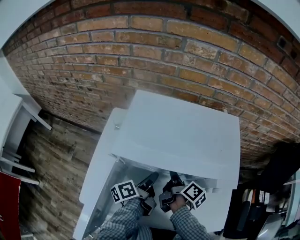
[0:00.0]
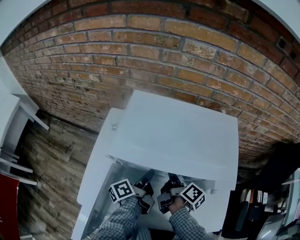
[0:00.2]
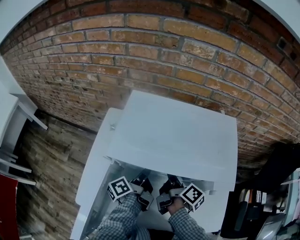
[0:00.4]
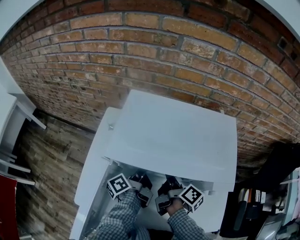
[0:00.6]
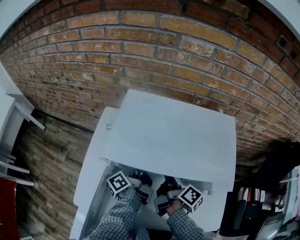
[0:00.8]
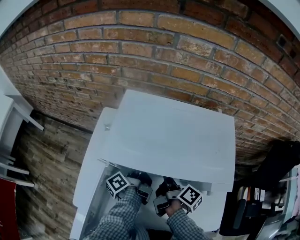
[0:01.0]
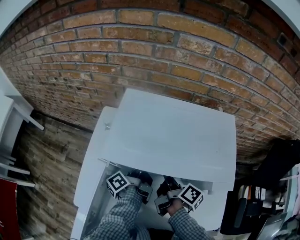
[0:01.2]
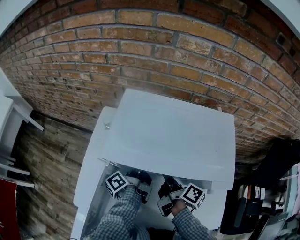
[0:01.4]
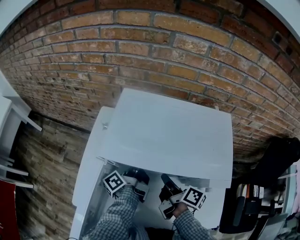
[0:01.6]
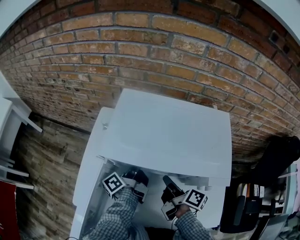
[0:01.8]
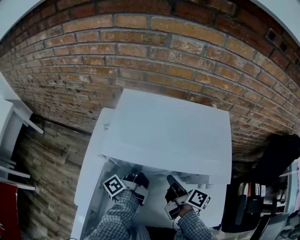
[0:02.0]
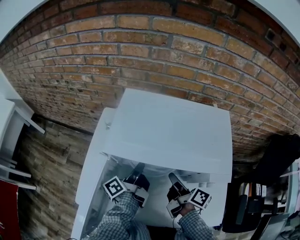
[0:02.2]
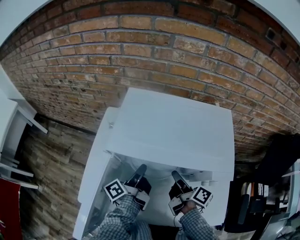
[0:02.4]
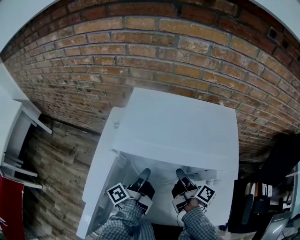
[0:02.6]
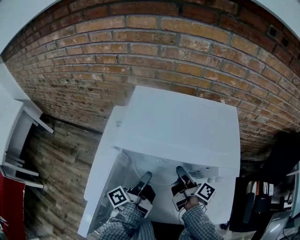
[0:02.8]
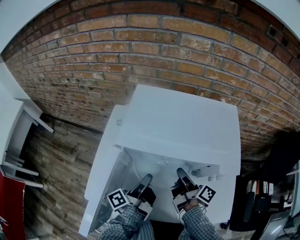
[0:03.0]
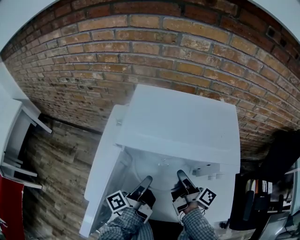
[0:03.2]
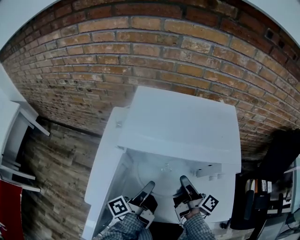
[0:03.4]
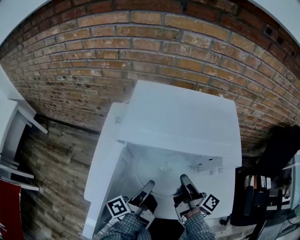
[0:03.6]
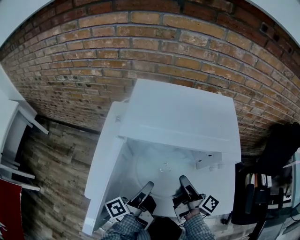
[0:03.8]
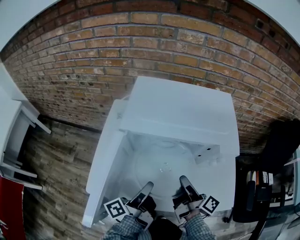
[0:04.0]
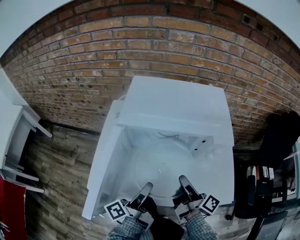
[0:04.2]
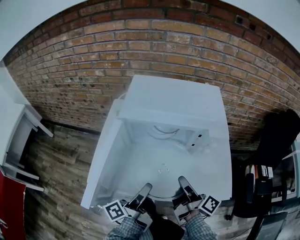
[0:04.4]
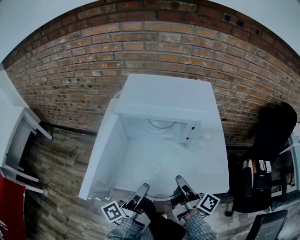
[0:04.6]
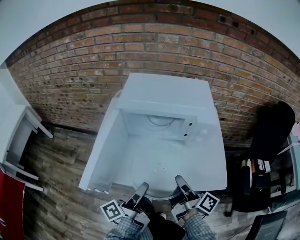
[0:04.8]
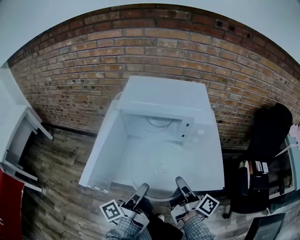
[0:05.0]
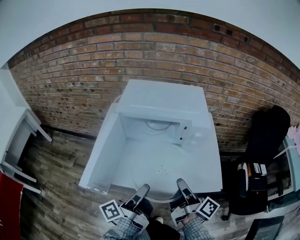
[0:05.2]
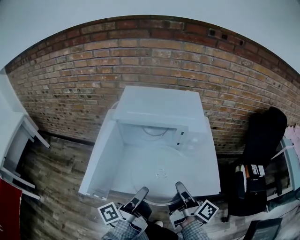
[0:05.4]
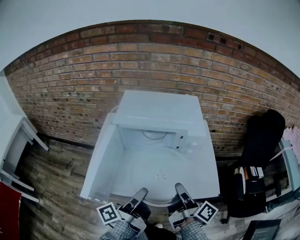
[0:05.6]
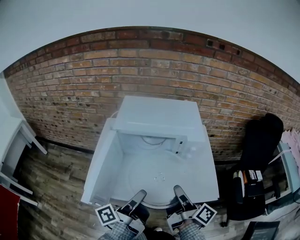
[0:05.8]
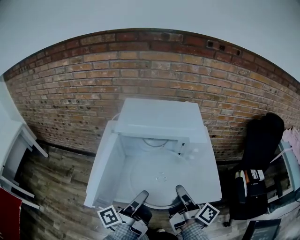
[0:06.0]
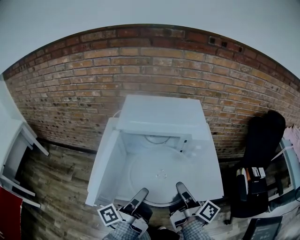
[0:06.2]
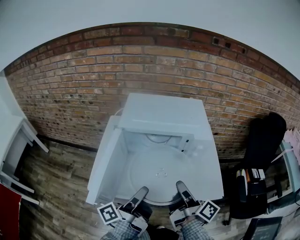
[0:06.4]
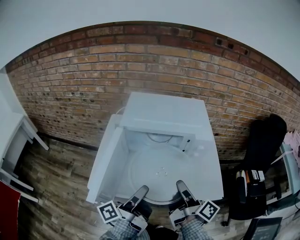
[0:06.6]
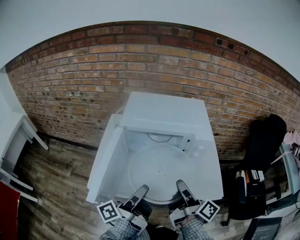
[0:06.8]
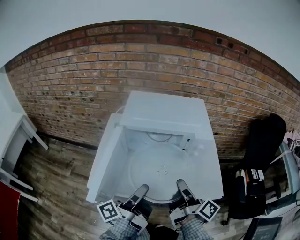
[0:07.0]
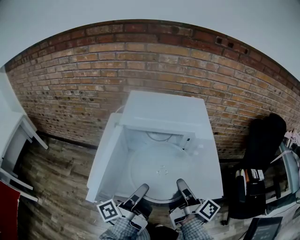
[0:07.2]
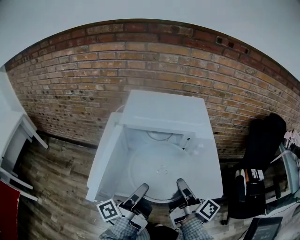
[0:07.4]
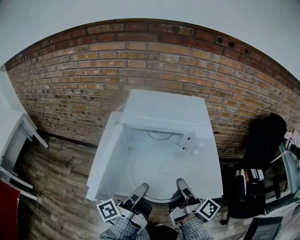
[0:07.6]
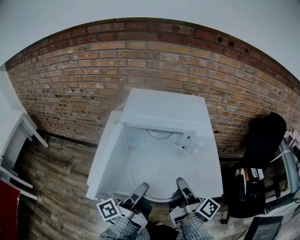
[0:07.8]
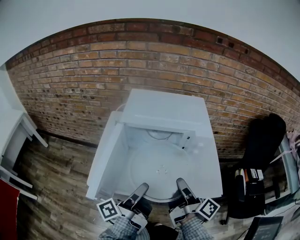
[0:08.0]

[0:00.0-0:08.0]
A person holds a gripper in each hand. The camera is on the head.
1.6 to 3.2 s: The right gripper opens and closes again.
3.2 to 4.8 s: The right gripper shifts by approximately 25 cm.
4.8 to 6.4 s: The right gripper heads upward, covering some 5 cm.

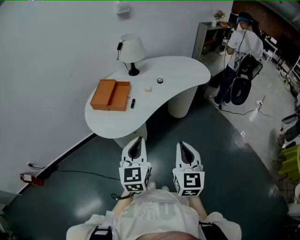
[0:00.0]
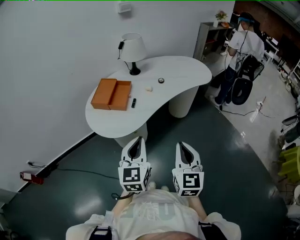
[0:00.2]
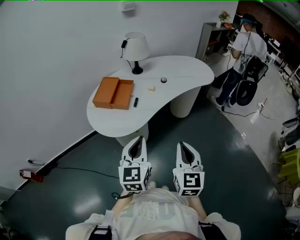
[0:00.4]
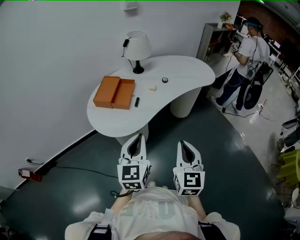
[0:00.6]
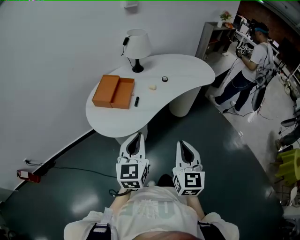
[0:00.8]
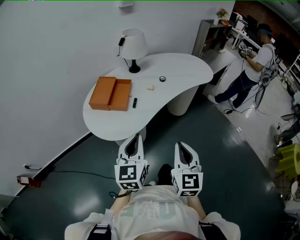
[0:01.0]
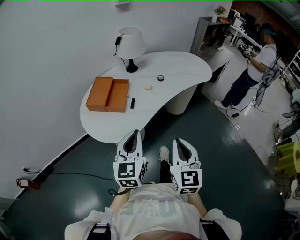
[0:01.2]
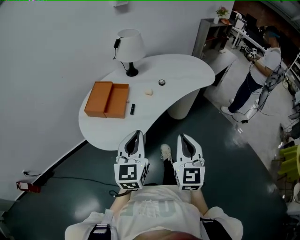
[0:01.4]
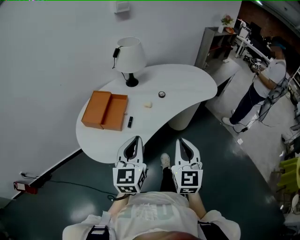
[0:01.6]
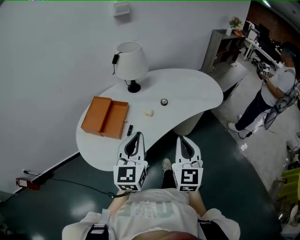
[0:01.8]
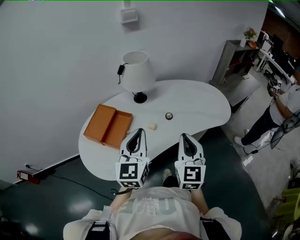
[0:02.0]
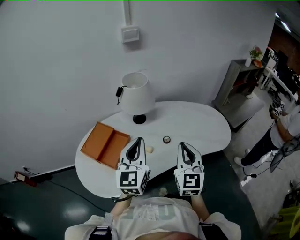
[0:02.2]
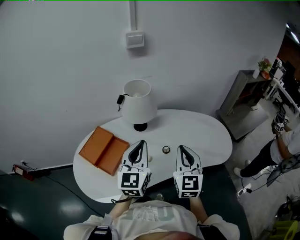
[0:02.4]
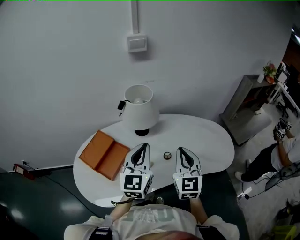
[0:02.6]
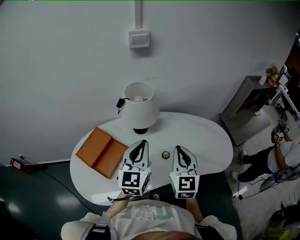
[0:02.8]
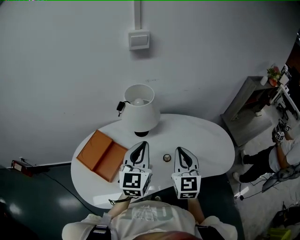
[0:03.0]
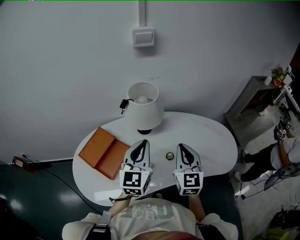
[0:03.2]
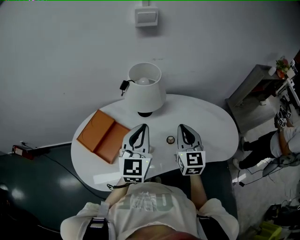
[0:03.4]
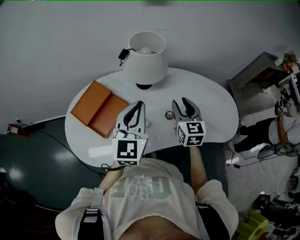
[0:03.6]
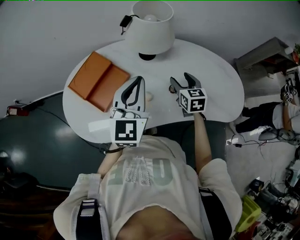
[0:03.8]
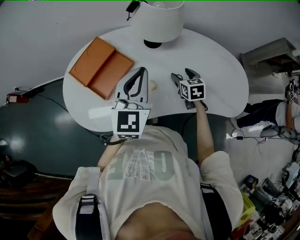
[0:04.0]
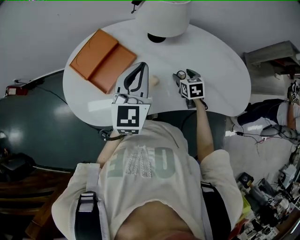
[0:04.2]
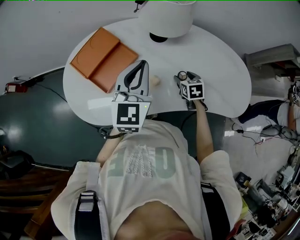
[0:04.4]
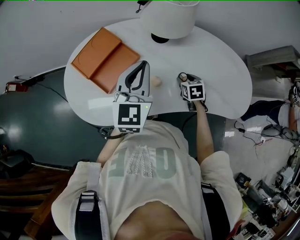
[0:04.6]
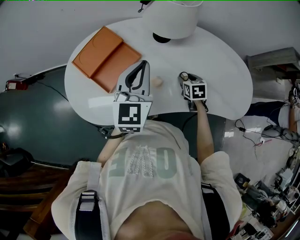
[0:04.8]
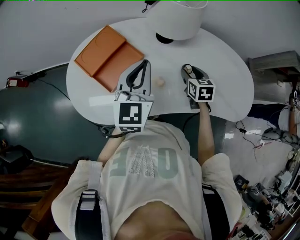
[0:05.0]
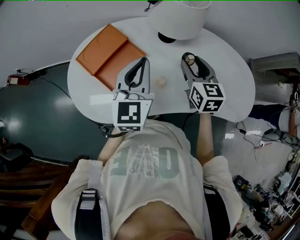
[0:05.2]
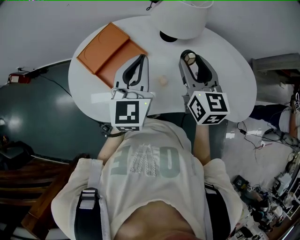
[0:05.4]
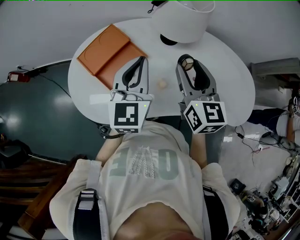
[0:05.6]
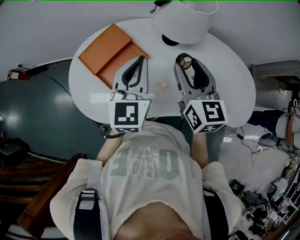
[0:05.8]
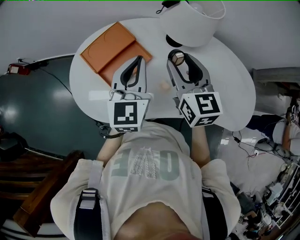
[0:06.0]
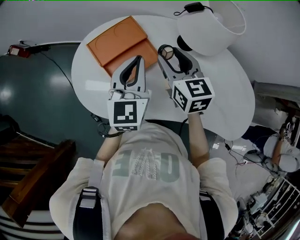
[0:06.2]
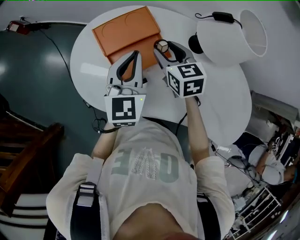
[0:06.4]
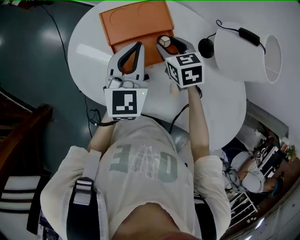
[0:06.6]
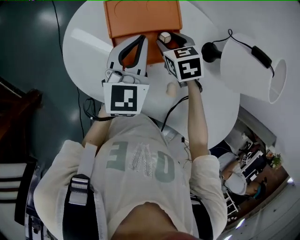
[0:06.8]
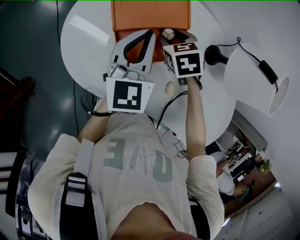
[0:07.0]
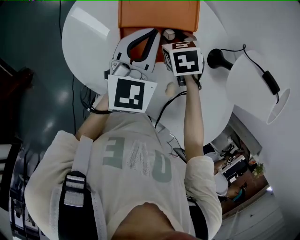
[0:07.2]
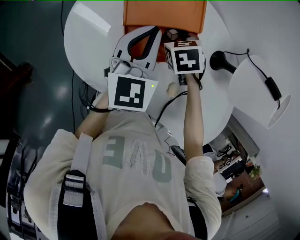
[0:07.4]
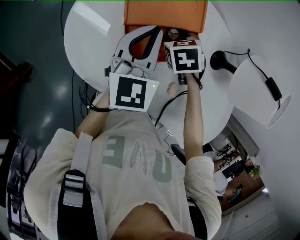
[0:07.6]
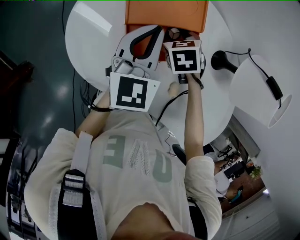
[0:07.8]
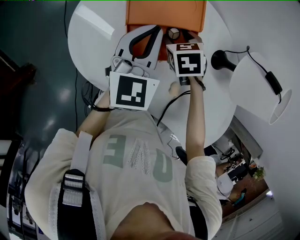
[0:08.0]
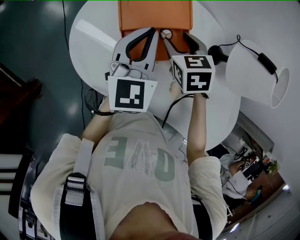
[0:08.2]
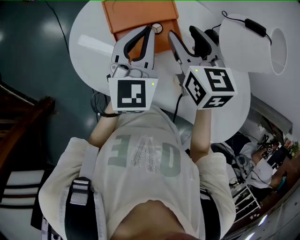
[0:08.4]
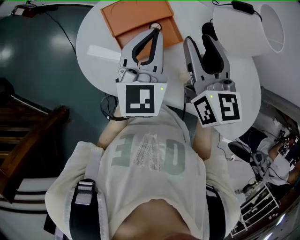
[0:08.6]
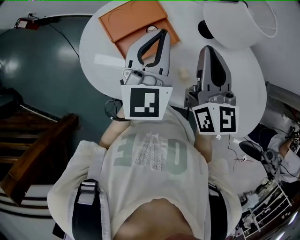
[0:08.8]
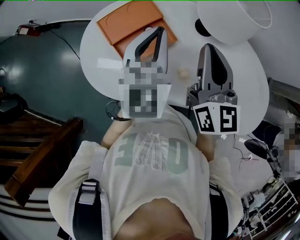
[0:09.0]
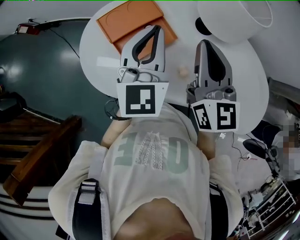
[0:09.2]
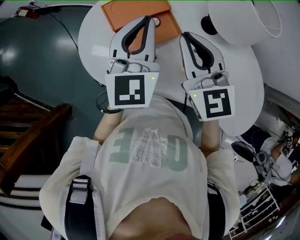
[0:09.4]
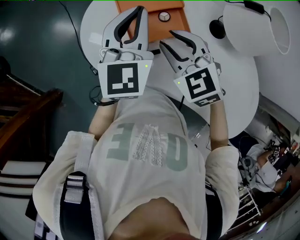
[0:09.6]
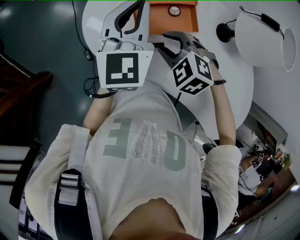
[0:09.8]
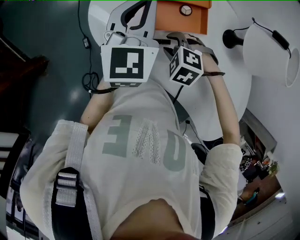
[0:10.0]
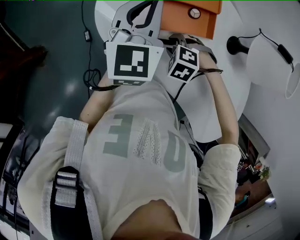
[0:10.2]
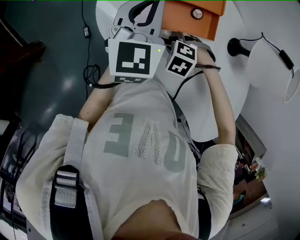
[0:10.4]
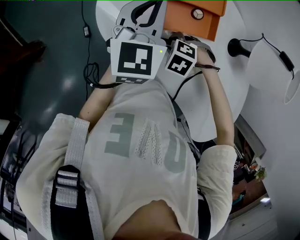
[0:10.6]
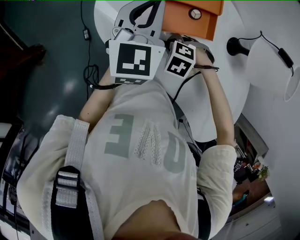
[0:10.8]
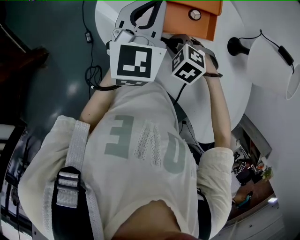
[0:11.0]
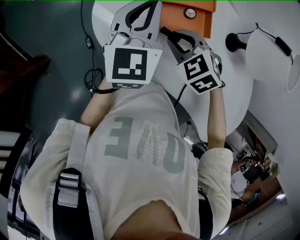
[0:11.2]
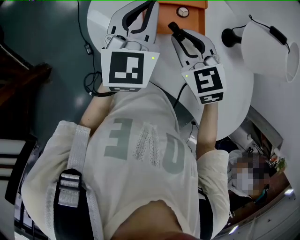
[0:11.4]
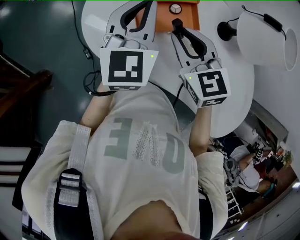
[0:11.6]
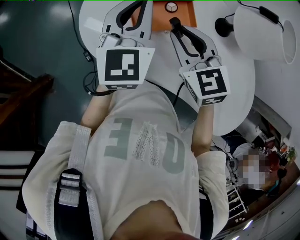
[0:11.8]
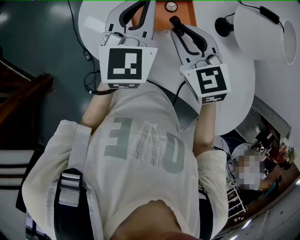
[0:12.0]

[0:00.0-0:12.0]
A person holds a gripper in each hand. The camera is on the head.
0.0 to 1.6 s: The grippers both shift forward by some 15 cm.
1.6 to 3.0 s: Both grippers move forward, approximately 35 cm. The right gripper changes its angle by approximately 20 degrees.
3.0 to 4.4 s: The left gripper moves to the left and downward, some 10 cm, while the right gripper travels downward by roughly 30 cm, points its fingers approximately 50 degrees further downward, and opens its fingers.
4.4 to 6.0 s: The right gripper heads upward and to the left, covering about 30 cm, and tilts its fingers about 40 degrees upward. The left gripper shifts some 5 cm to the left.
6.0 to 7.6 s: The right gripper is displaced downward by approximately 25 cm, and tilts its fingers about 60 degrees downward. Meanwhile the left gripper shifts by about 20 cm, and rotates roughly 30 degrees.
7.6 to 9.0 s: The right gripper is displaced upward, backward and to the right by roughly 35 cm, tips its fingers upward by some 70 degrees, and closes up. The left gripper goes roughly 20 cm upward, to the right and backward, and changes its angle by approximately 20 degrees.
9.0 to 10.4 s: The left gripper shifts by approximately 20 cm, and swivels about 30 degrees. Meanwhile the right gripper heads downward, covering some 30 cm, tilts its fingers roughly 80 degrees downward, and opens up.
10.4 to 12.0 s: The right gripper moves upward, about 20 cm, and angles its fingers upward, by some 50 degrees. Meanwhile the left gripper moves some 10 cm.

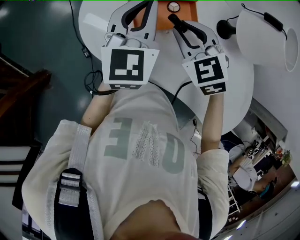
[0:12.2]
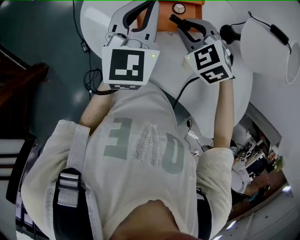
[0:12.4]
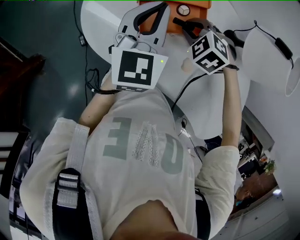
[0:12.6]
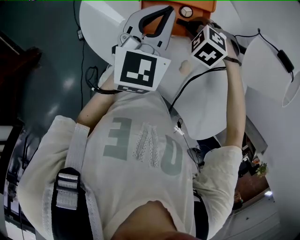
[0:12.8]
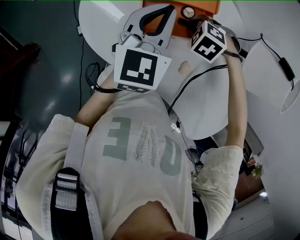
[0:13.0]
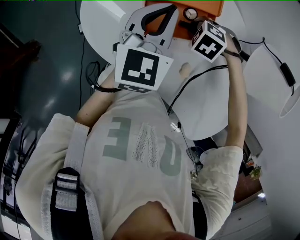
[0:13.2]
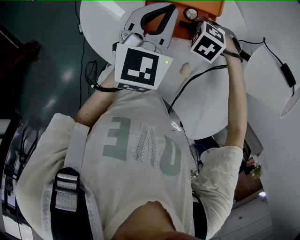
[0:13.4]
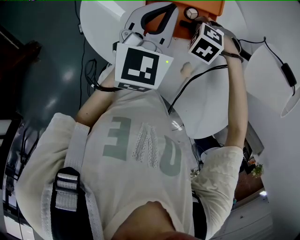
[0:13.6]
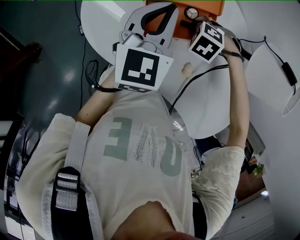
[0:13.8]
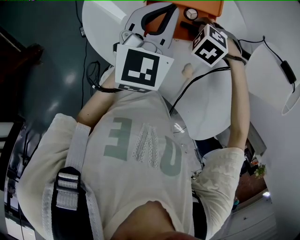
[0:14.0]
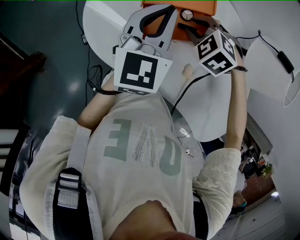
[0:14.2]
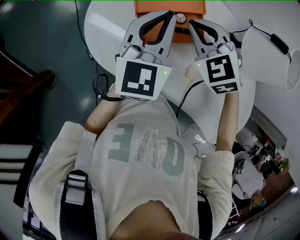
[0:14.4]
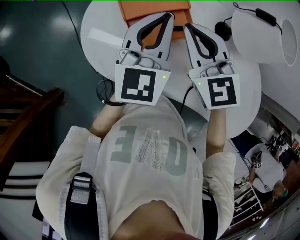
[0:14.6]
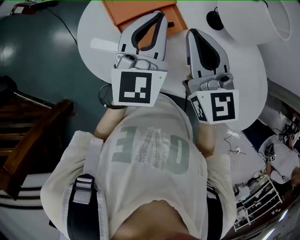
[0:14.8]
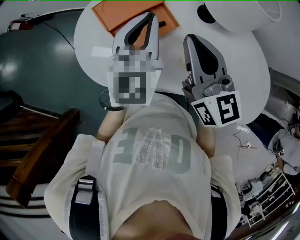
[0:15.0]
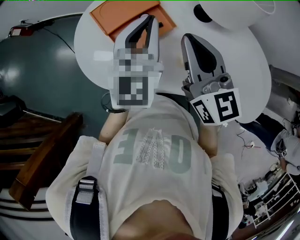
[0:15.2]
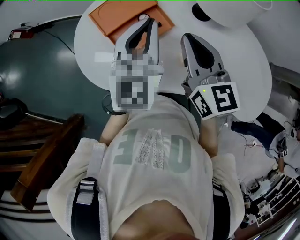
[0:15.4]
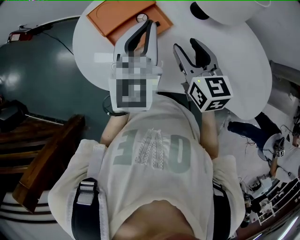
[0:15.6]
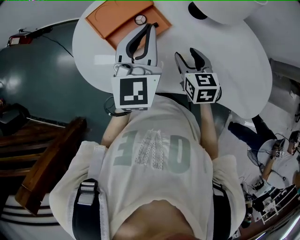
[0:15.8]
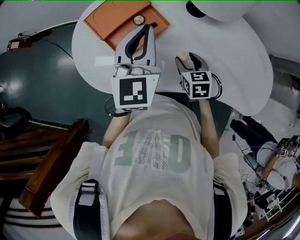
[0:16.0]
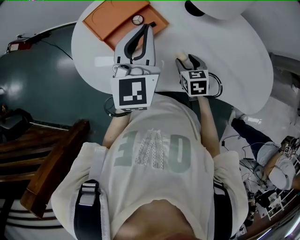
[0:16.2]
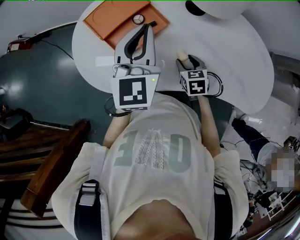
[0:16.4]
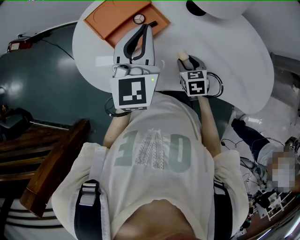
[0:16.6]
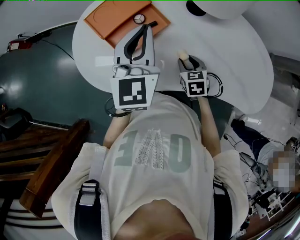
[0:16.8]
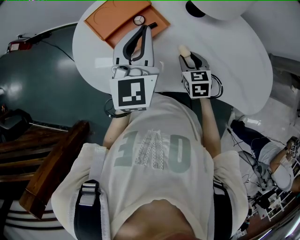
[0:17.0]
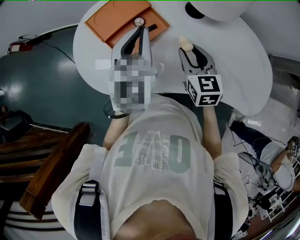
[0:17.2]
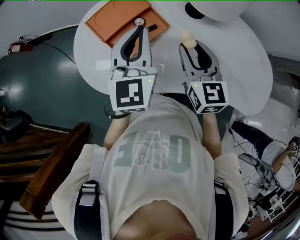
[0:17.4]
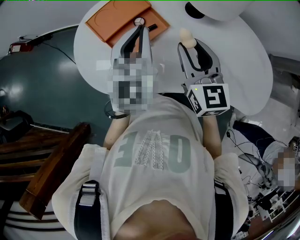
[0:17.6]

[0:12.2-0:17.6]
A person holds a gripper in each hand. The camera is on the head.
12.2 to 13.6 s: The left gripper shifts roughly 5 cm downward; the right gripper shifts some 15 cm downward, and points its fingers approximately 50 degrees further downward.
13.6 to 15.0 s: The left gripper travels upward by some 10 cm, and turns by about 20 degrees; the right gripper shifts about 30 cm upward, and points its fingers approximately 80 degrees further upward.
15.0 to 16.2 s: The right gripper travels downward by approximately 30 cm, points its fingers about 50 degrees further downward, and opens up.
16.2 to 17.6 s: The right gripper heads upward, covering about 20 cm, and points its fingers approximately 40 degrees further upward.
